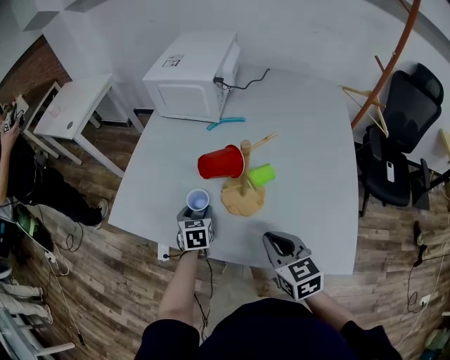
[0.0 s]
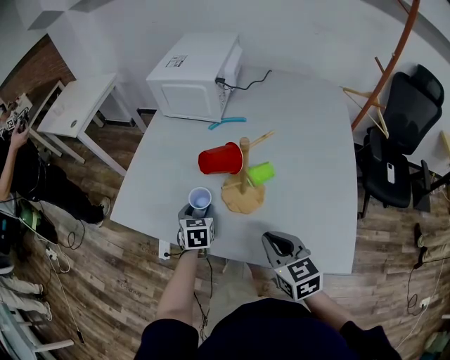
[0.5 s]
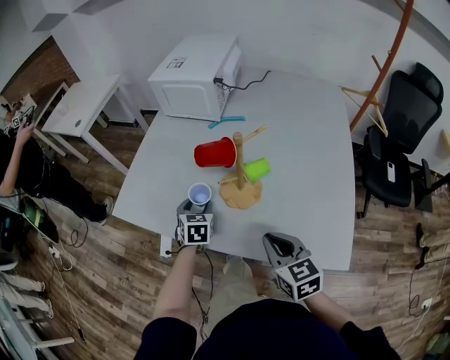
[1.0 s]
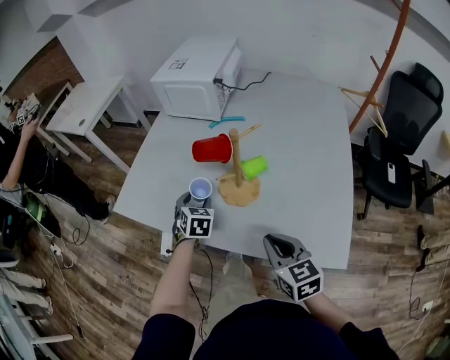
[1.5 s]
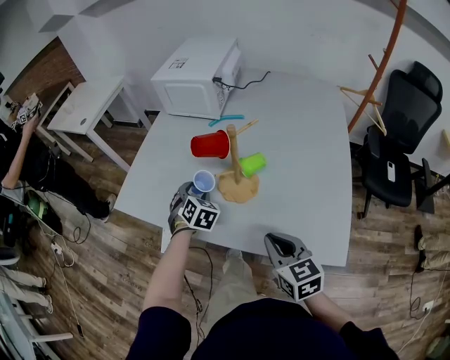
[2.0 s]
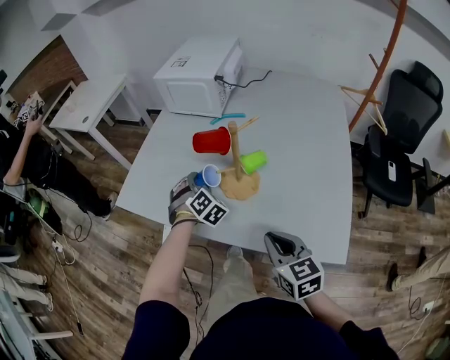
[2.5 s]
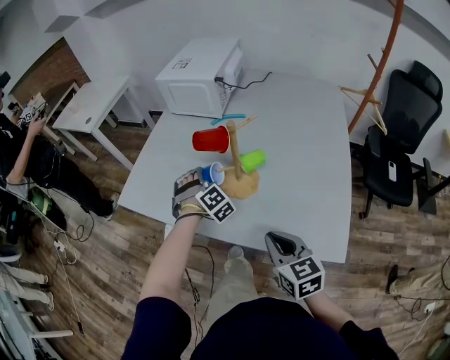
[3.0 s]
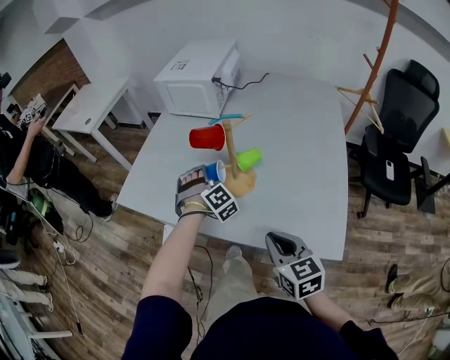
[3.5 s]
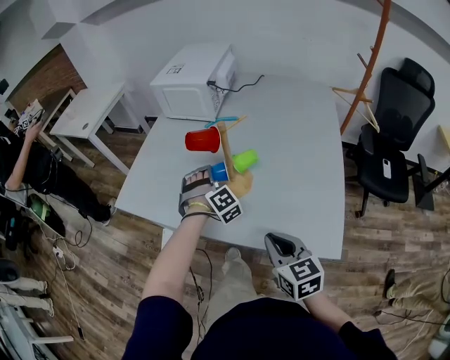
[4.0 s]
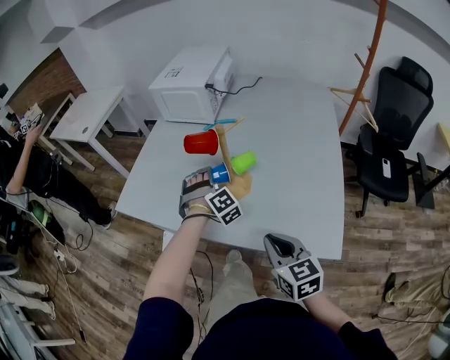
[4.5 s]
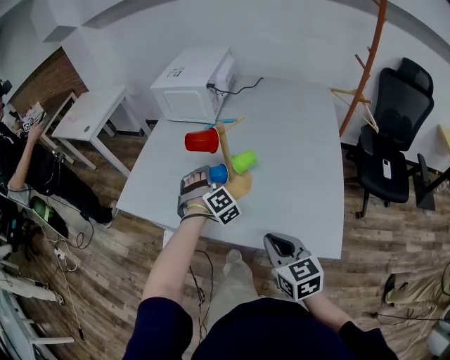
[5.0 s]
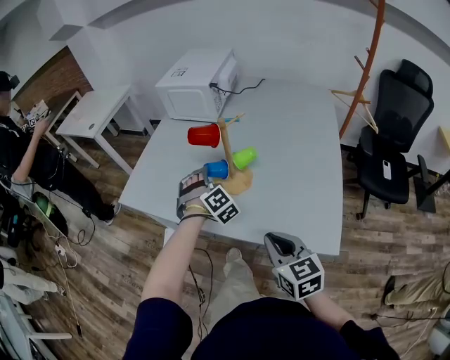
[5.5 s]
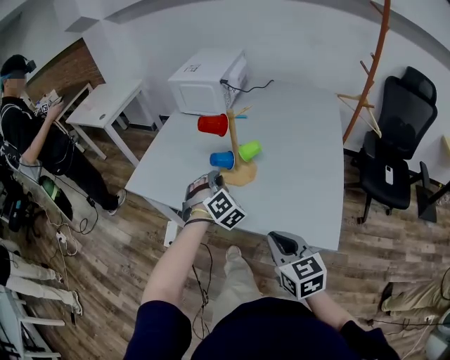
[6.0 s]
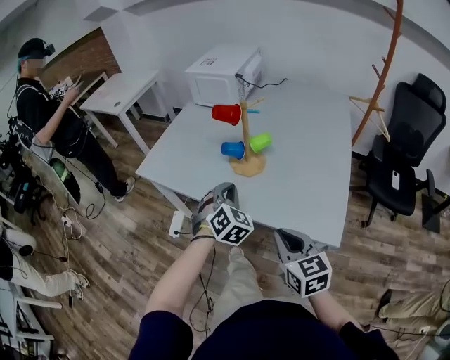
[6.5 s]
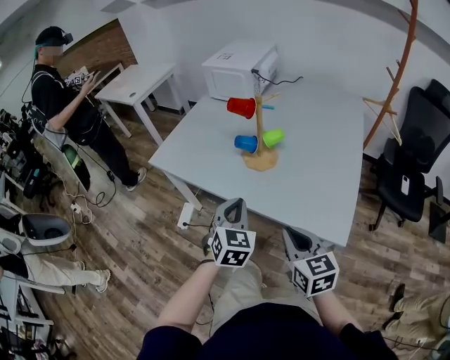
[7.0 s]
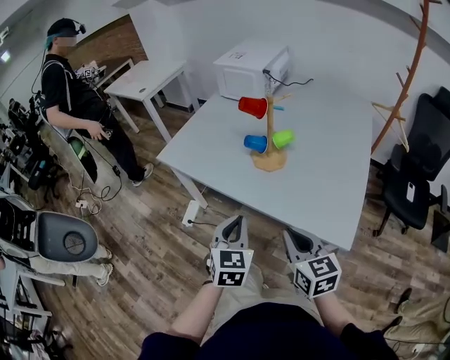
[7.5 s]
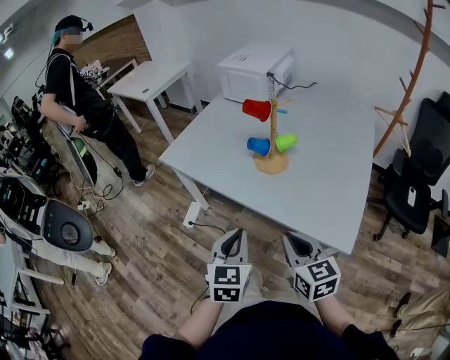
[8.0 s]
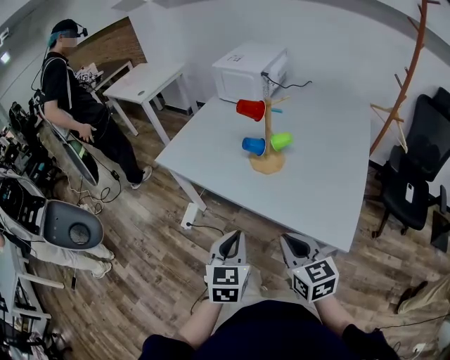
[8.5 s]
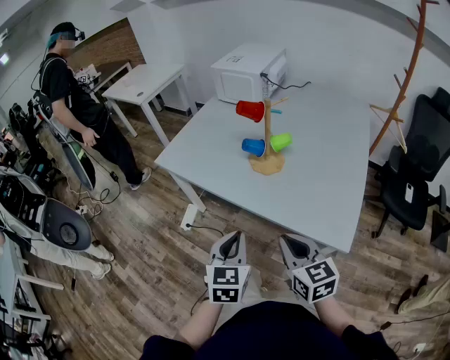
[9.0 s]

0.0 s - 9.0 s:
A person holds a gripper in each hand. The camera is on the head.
0.0 s - 2.0 s: The right gripper goes about 5 cm backward. The left gripper travels upward by roughly 5 cm, and changes its angle by approximately 30 degrees.
2.0 s - 4.5 s: The left gripper goes some 10 cm to the right, and rolls clockwise, seen from behind, by some 40 degrees.
4.5 s - 7.0 s: The right gripper goes about 10 cm backward, while the left gripper moves backward, some 25 cm, rolls counterclockwise, seen from behind, by roughly 60 degrees, and closes its fingers.
7.0 s - 9.0 s: The left gripper shifts some 10 cm backward.

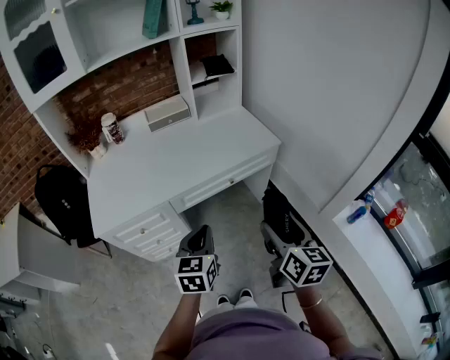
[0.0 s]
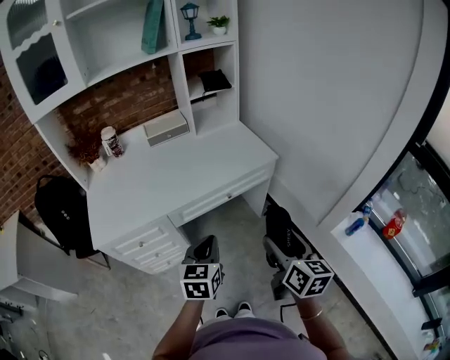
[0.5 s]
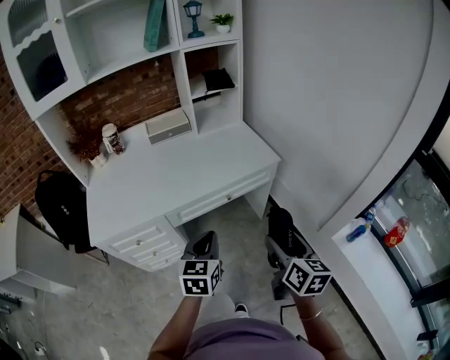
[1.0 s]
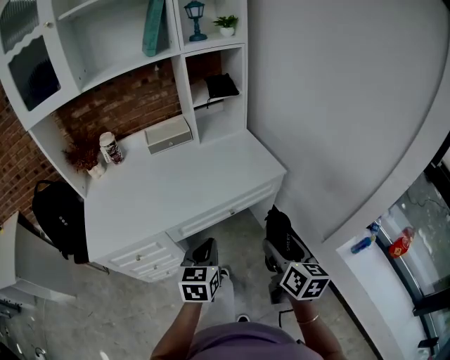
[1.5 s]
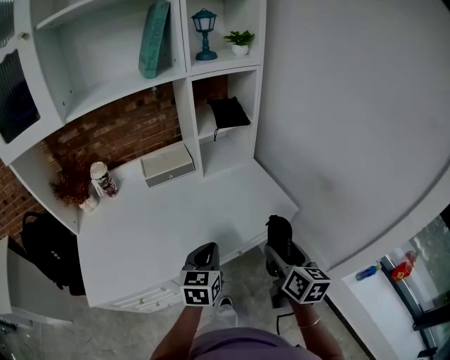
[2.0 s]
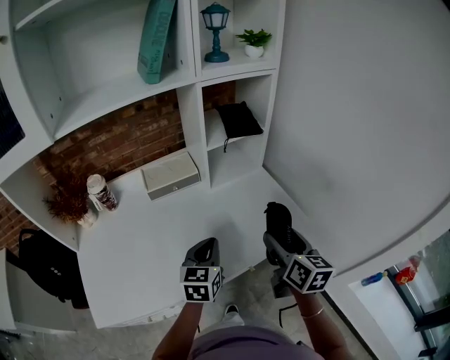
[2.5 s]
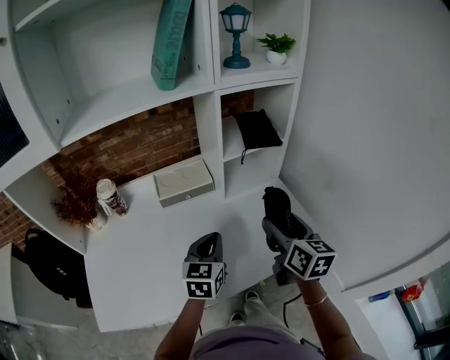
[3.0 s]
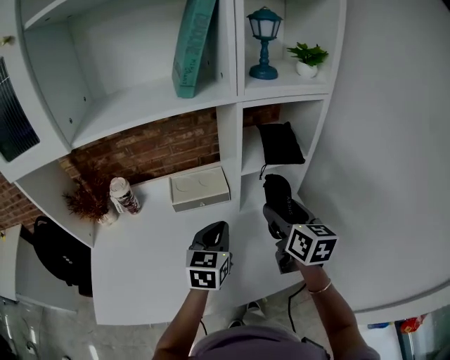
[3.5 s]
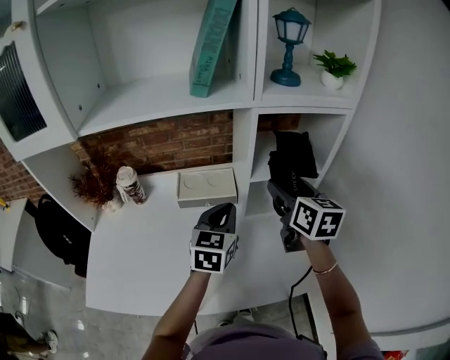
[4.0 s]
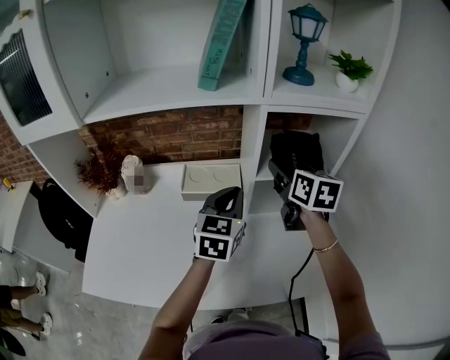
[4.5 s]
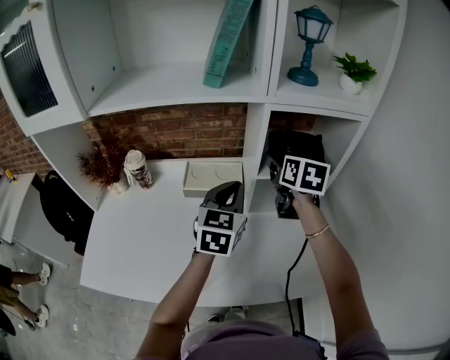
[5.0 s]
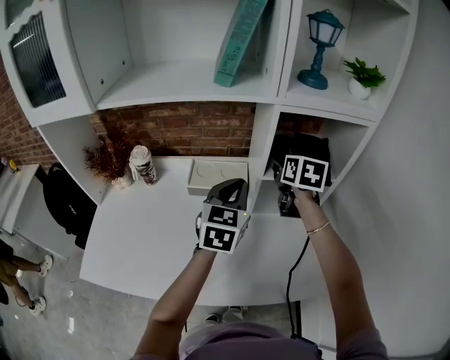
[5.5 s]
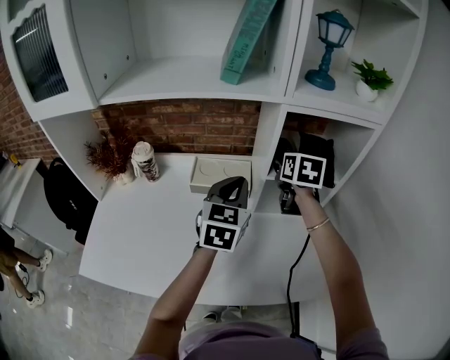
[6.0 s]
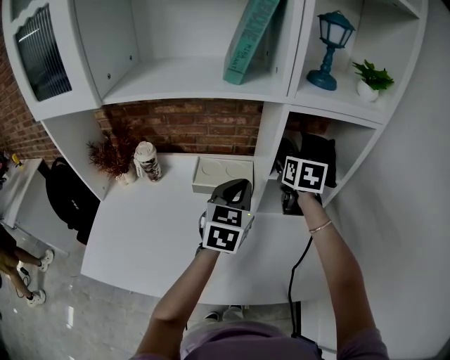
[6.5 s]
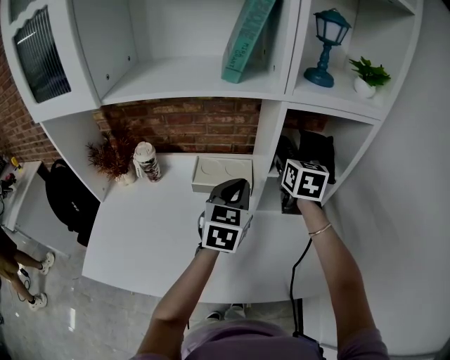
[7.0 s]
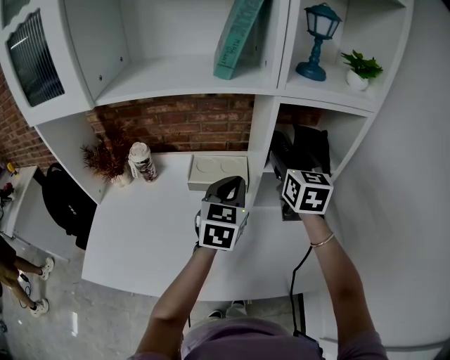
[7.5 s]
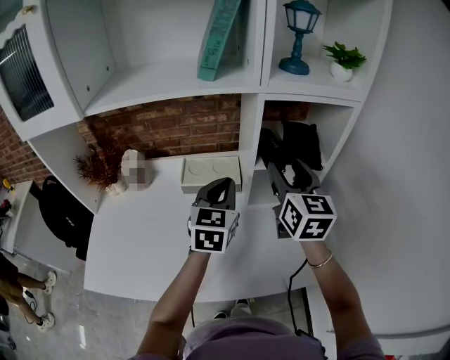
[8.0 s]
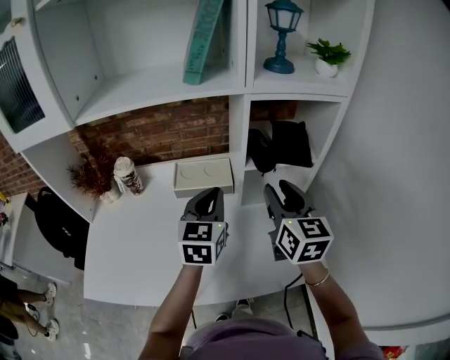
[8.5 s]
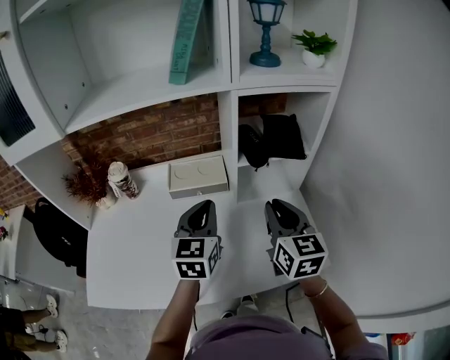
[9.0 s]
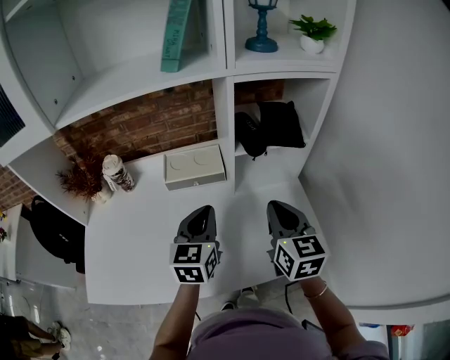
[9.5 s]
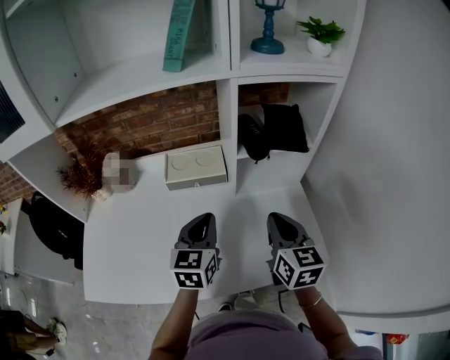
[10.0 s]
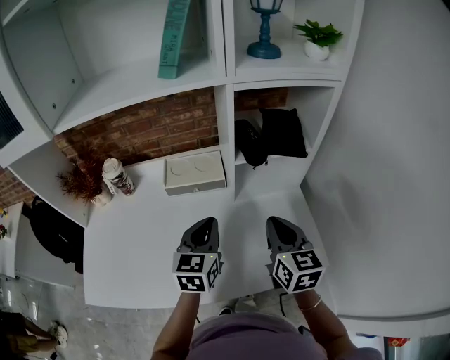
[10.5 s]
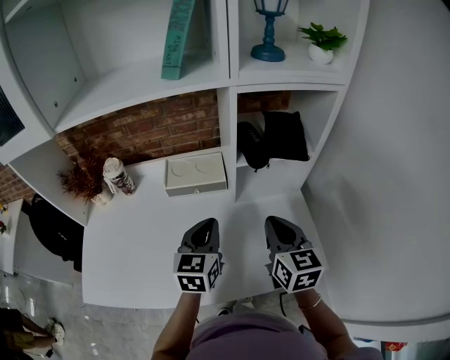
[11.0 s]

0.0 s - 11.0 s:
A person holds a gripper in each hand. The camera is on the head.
0.0 s - 2.0 s: Both grippers move forward, roughly 25 cm.
2.0 s - 3.5 s: Both grippers move forward, approximately 25 cm.
3.5 s - 5.5 s: The right gripper travels forward by some 20 cm. The left gripper shifts roughly 10 cm forward and upward.
5.5 s - 7.5 s: The right gripper ends up approximately 5 cm from where it was, and turns by some 20 degrees.
7.5 s - 9.0 s: The right gripper travels backward by approximately 15 cm, and closes up, while the left gripper is displaced backward by some 5 cm.
9.0 s - 11.0 s: The left gripper is displaced downward by about 5 cm.

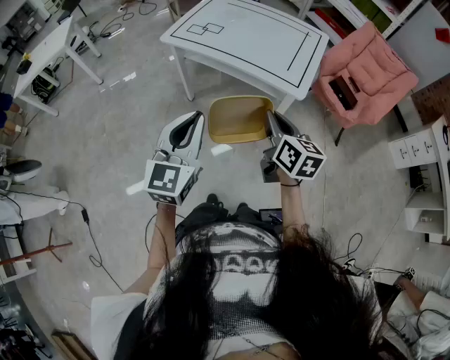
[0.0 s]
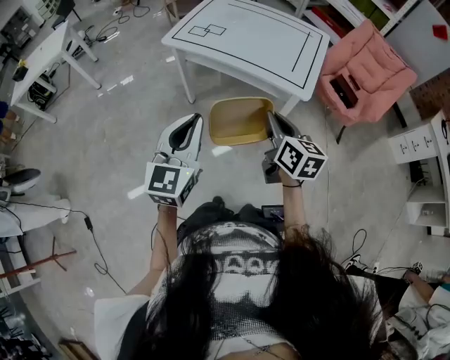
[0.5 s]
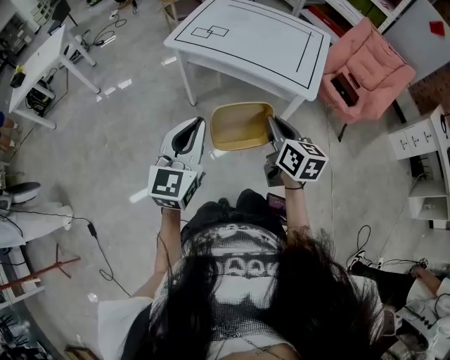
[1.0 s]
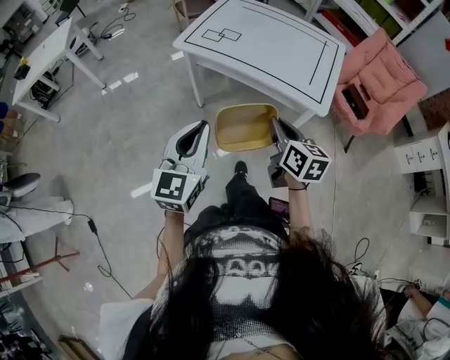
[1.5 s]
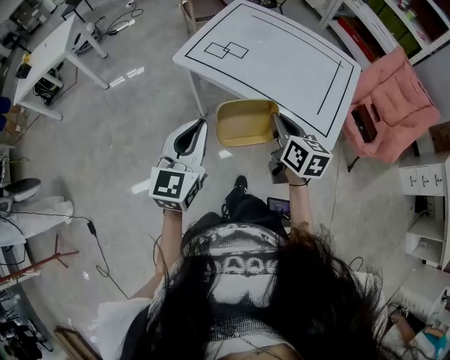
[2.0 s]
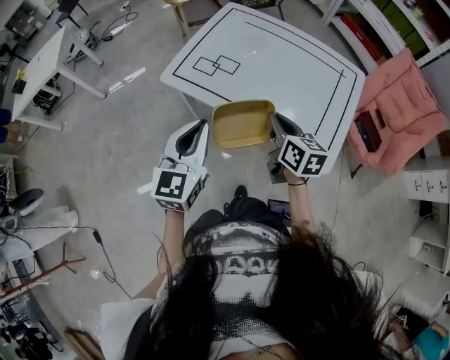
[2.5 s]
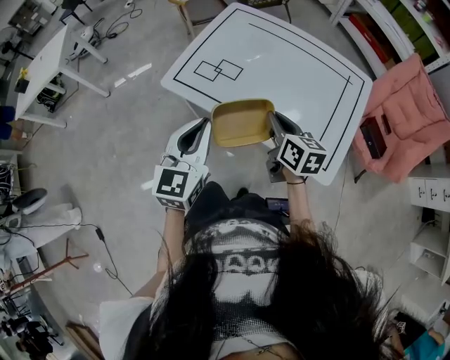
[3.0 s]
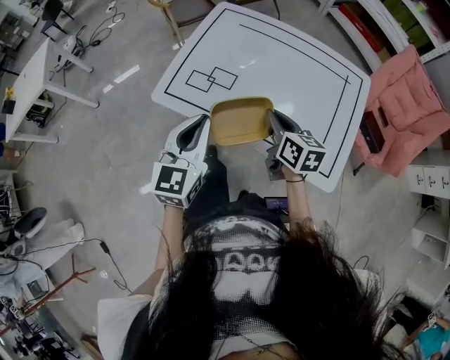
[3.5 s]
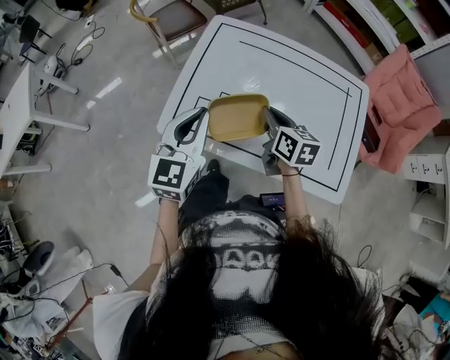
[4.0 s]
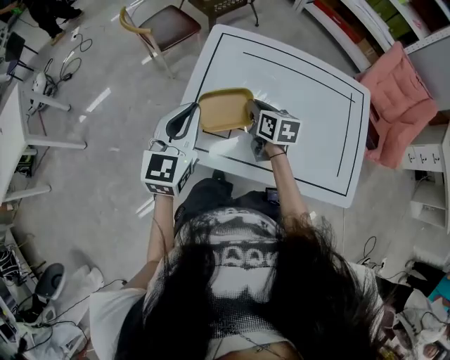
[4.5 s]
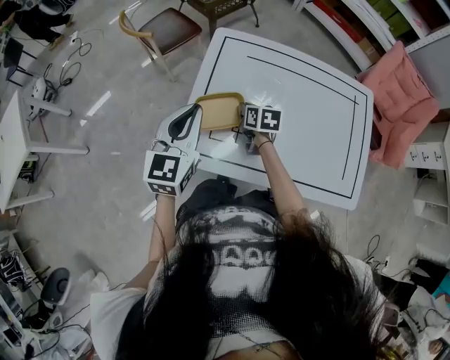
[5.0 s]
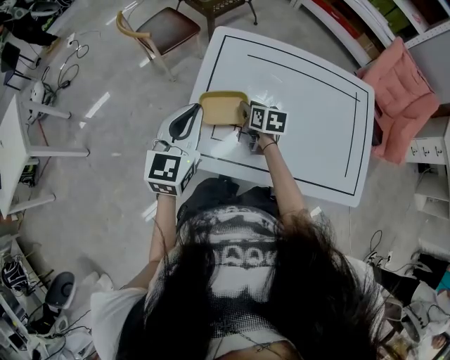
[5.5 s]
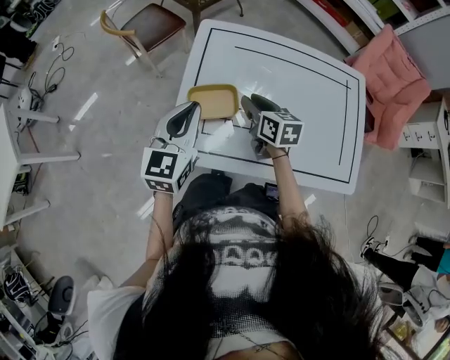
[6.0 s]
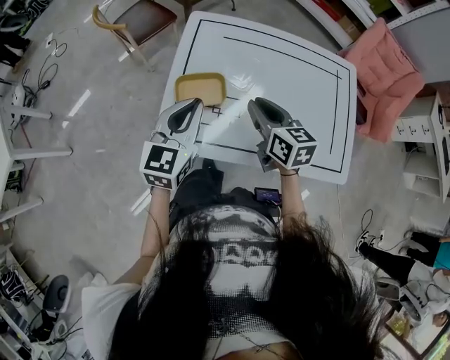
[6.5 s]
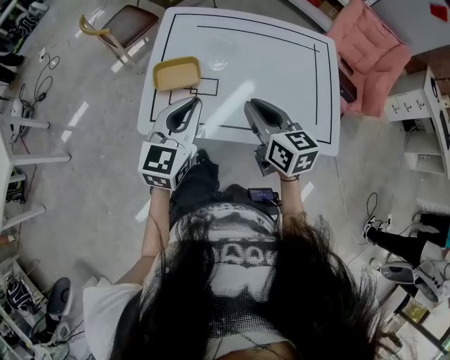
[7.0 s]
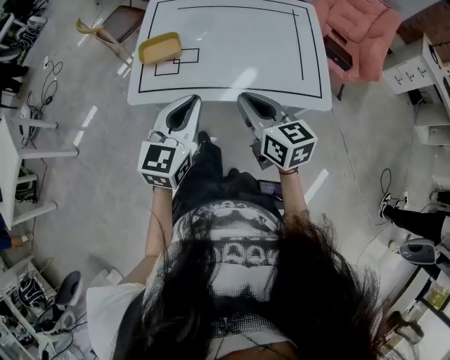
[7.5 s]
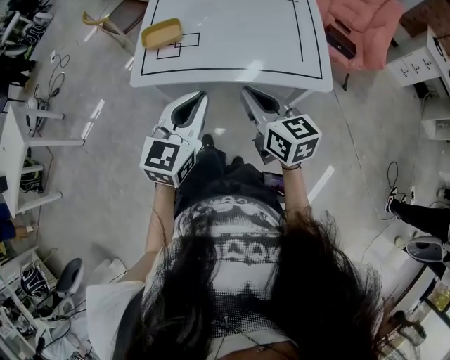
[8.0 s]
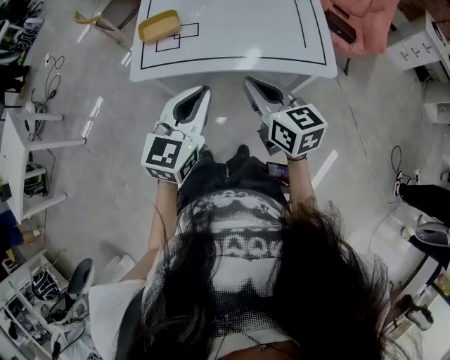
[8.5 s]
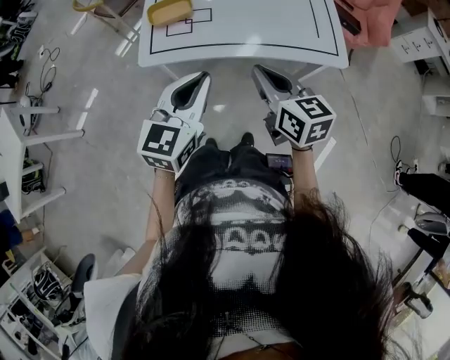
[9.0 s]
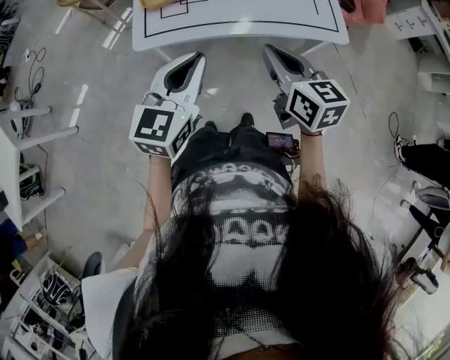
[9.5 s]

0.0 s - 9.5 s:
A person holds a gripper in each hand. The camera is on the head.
0.0 s - 2.0 s: The right gripper heads forward, covering roughly 25 cm; the left gripper travels forward and to the left by approximately 25 cm.
2.0 s - 4.0 s: Both grippers travel together forward, roughly 40 cm.
4.0 s - 5.5 s: The right gripper is displaced forward, downward and to the left by approximately 20 cm, and opens its fingers. Meanwhile the left gripper heads forward and to the left, covering some 15 cm.
5.5 s - 7.5 s: The left gripper moves backward and to the right, roughly 40 cm. The right gripper shifts about 50 cm backward, upward and to the right, changes its angle by some 30 degrees, and closes up.
7.5 s - 9.5 s: The right gripper shifts approximately 10 cm backward and to the left. The left gripper goes some 10 cm to the left and backward.
